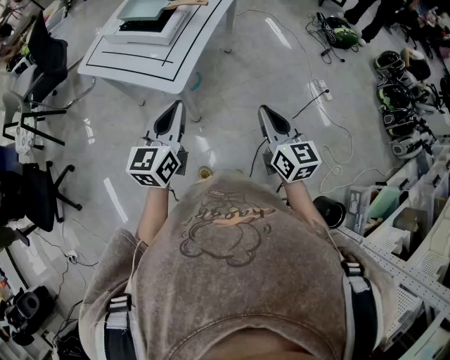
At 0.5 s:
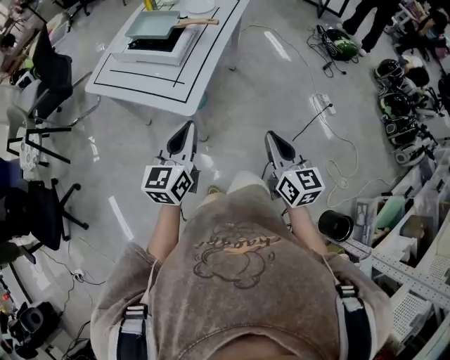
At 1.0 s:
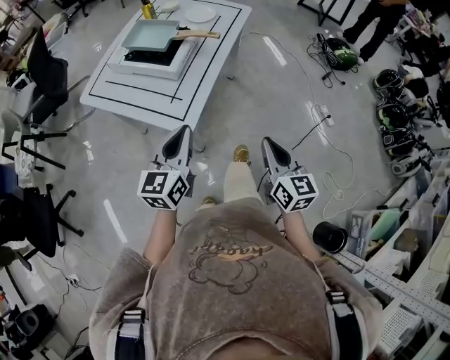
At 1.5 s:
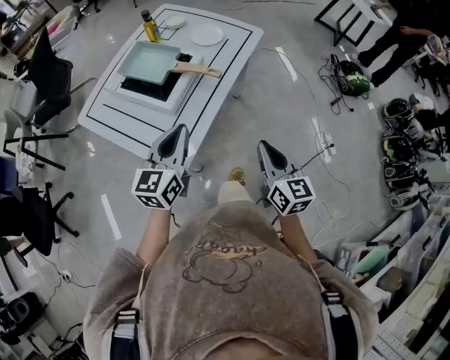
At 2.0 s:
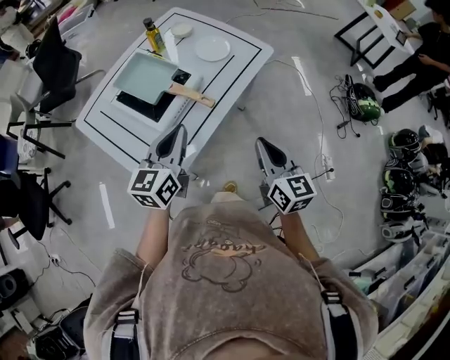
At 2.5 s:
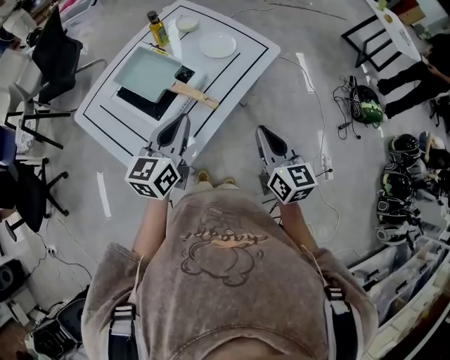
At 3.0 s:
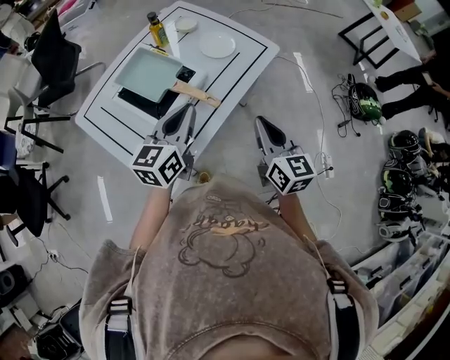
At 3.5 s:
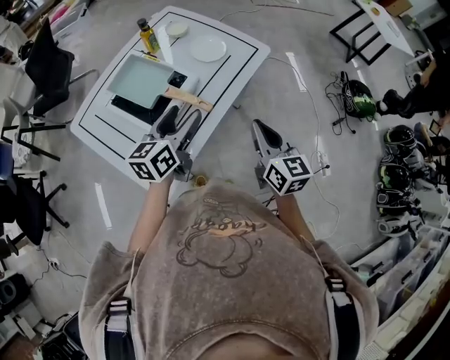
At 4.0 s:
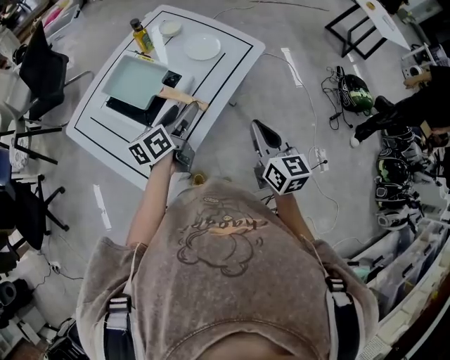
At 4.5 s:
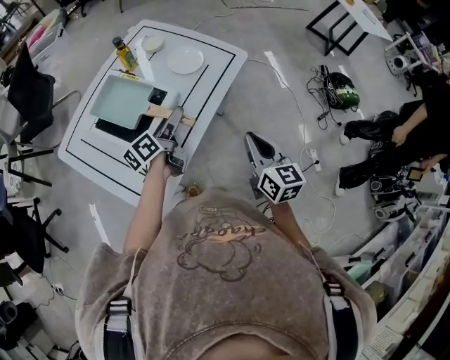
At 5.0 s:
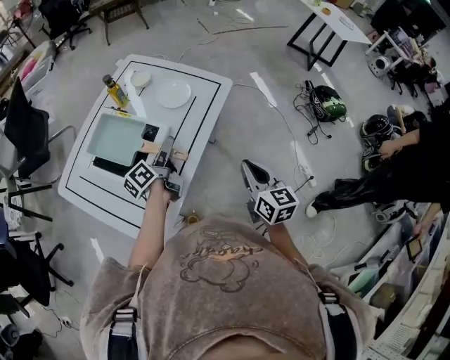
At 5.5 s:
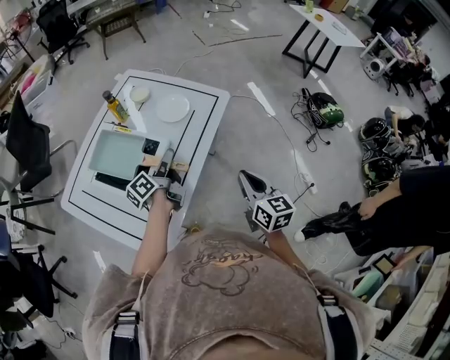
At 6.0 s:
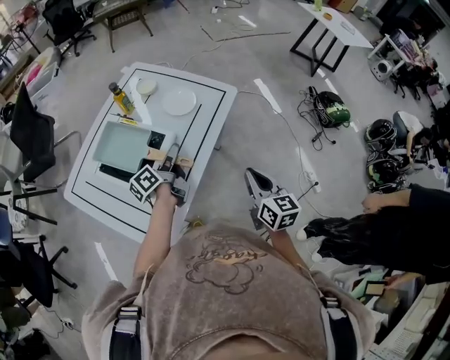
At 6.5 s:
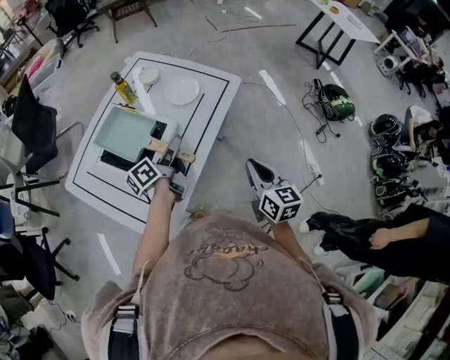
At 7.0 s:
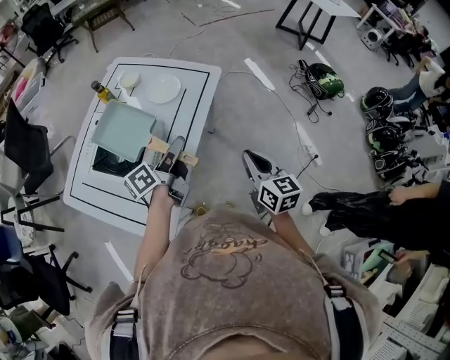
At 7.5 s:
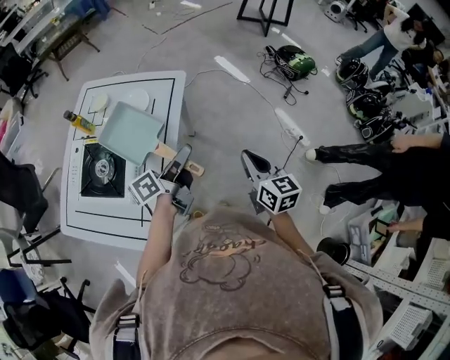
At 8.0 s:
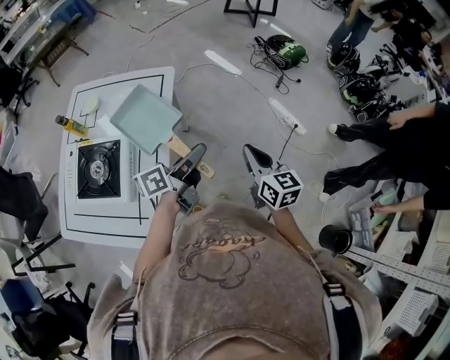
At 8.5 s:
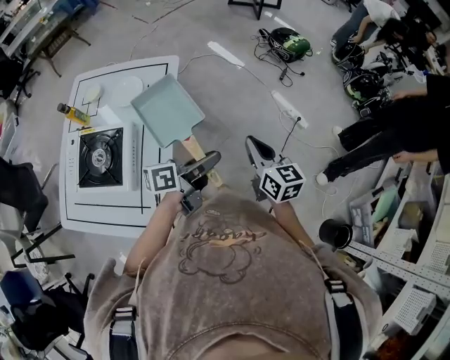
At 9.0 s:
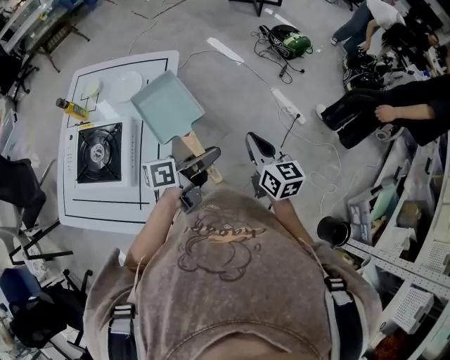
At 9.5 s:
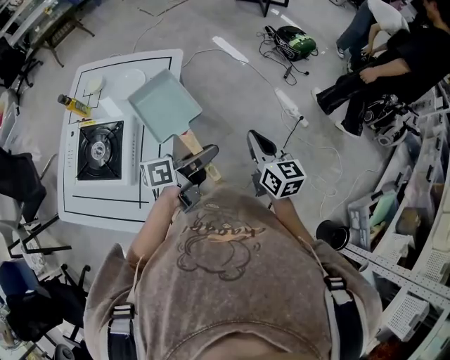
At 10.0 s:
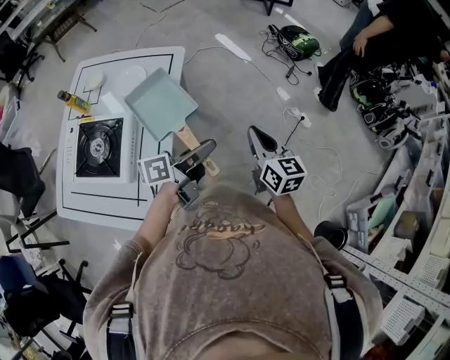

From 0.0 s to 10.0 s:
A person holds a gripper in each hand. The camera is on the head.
From 0.0 s to 2.0 s: The grippers both shift forward by roughly 35 cm.
From 2.0 s to 4.0 s: The left gripper moves forward and downward, approximately 10 cm, turns by about 30 degrees, and opens its fingers; the right gripper heads forward, covering about 5 cm.
From 4.0 s to 6.0 s: The left gripper goes approximately 5 cm forward, changes its angle by roughly 20 degrees, and closes its fingers.
From 6.0 s to 8.0 s: The left gripper changes place by roughly 25 cm, and changes its angle by roughly 50 degrees, while the right gripper changes place by about 10 cm.
From 8.0 s to 10.0 s: The grippers move only a little.

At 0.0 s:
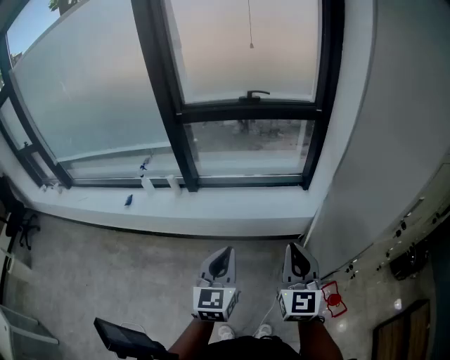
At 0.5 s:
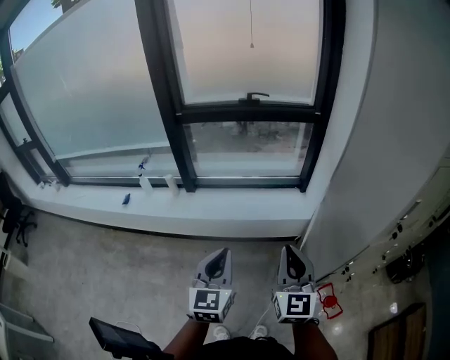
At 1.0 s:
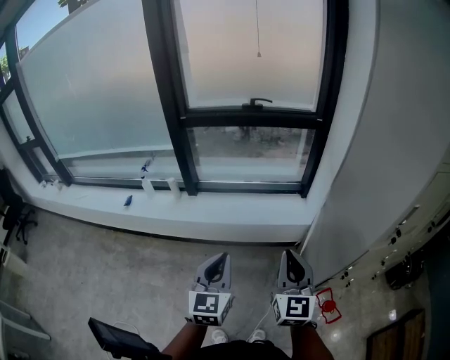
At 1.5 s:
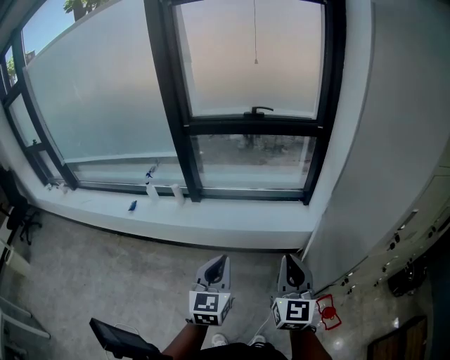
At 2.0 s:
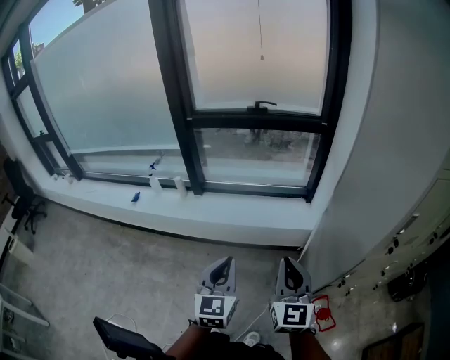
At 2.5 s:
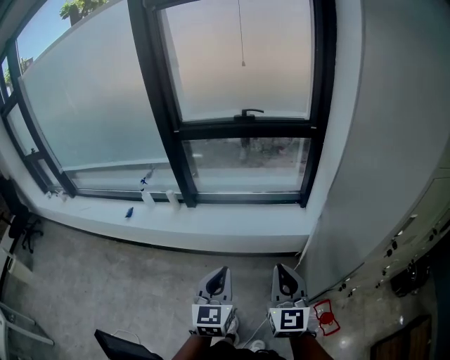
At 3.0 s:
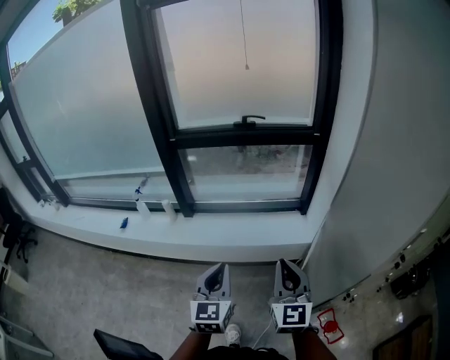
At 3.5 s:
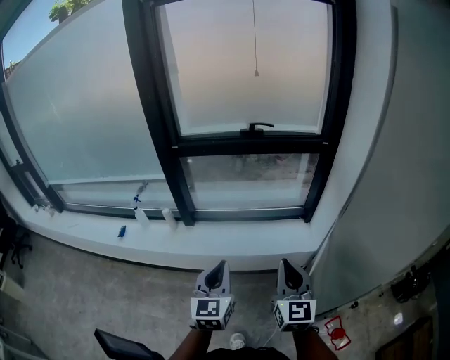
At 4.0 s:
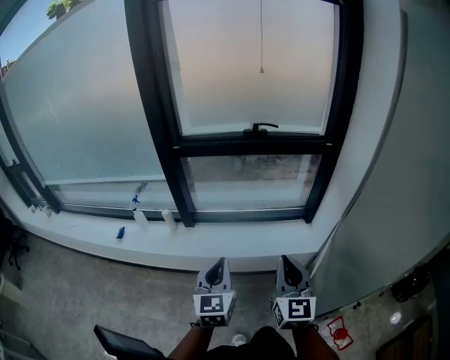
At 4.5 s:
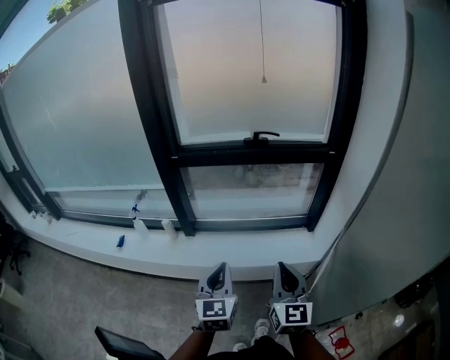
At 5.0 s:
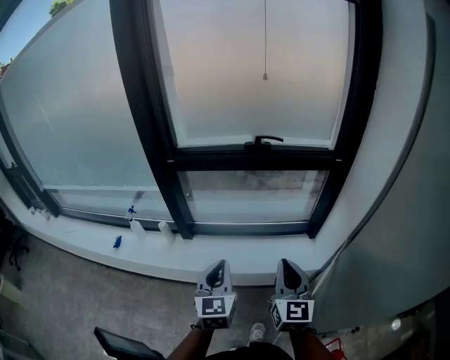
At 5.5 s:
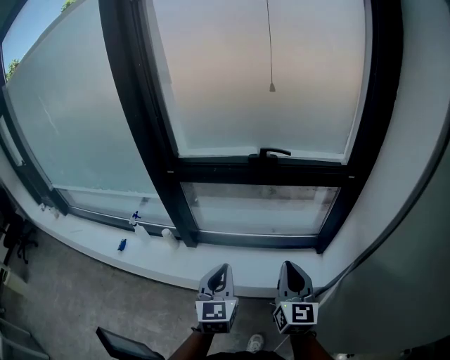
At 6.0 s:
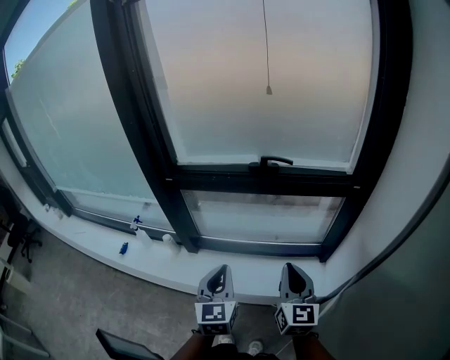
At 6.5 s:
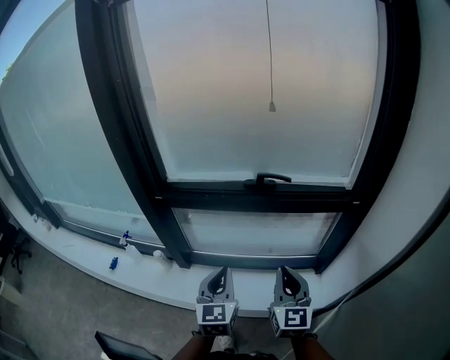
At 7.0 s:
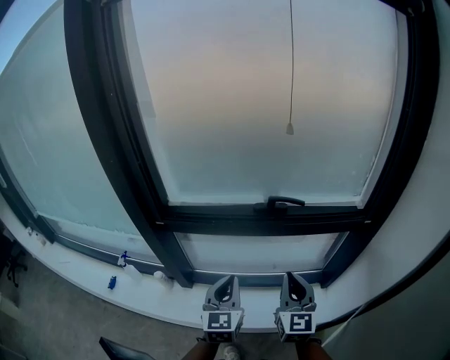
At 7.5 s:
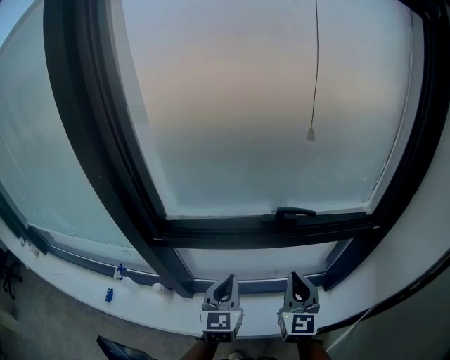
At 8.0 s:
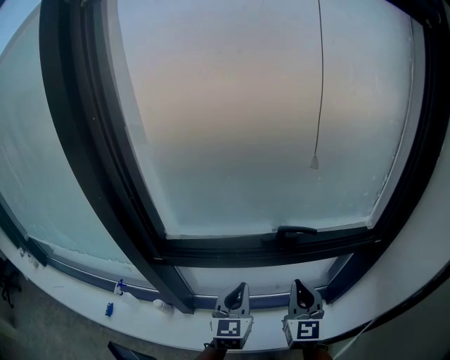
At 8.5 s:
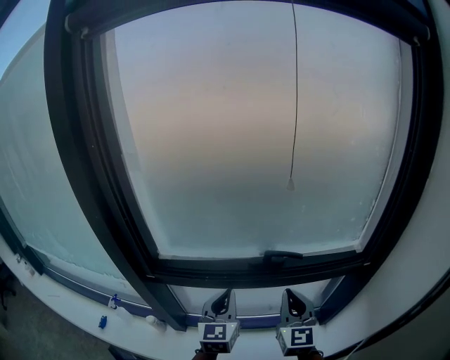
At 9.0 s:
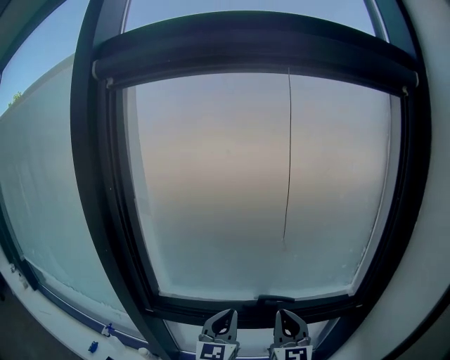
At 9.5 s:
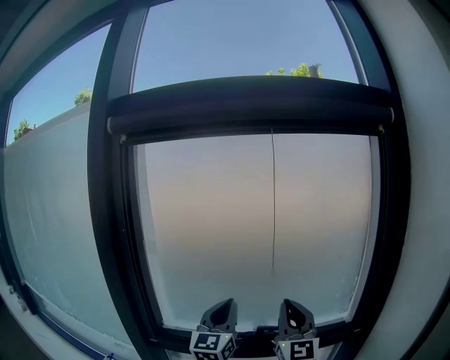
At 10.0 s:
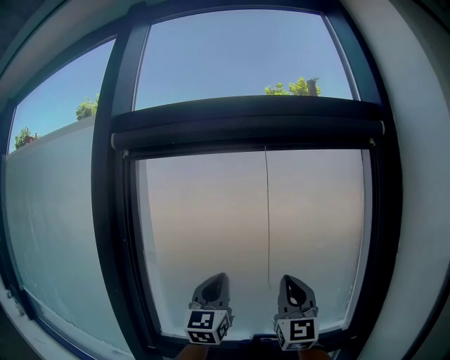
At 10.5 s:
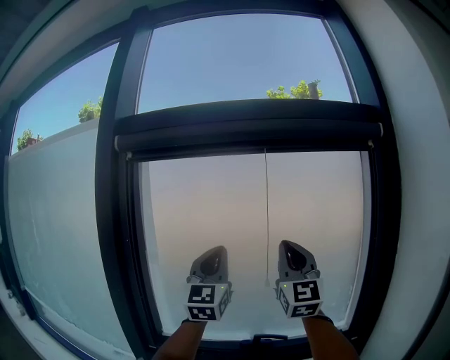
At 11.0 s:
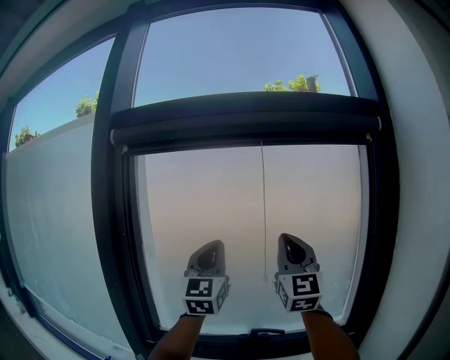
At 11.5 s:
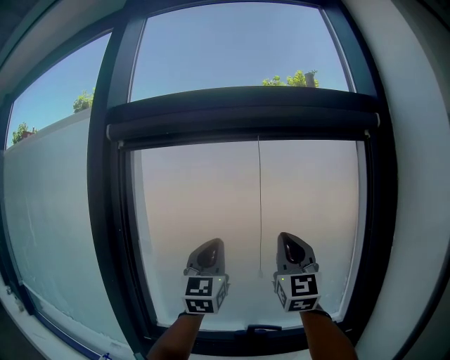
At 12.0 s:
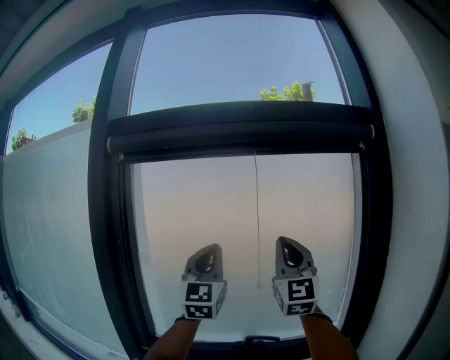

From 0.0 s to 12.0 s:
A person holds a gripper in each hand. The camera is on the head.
From 0.0 s to 2.0 s: The left gripper moves roughly 5 cm.
From 2.0 s to 4.0 s: The two grippers go roughly 25 cm forward and to the left.
From 4.0 s to 6.0 s: The two grippers go about 25 cm forward.
From 6.0 s to 8.0 s: The grippers both shift forward by some 25 cm.
From 8.0 s to 10.0 s: Both grippers travel together upward, roughly 35 cm. The left gripper tilts its fingers approximately 40 degrees upward, while the right gripper points its fingers about 40 degrees further upward.
From 10.0 s to 12.0 s: The grippers both shift upward by roughly 10 cm.

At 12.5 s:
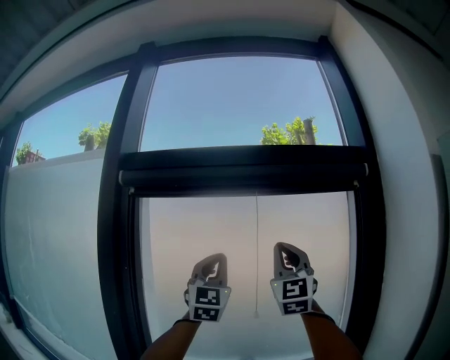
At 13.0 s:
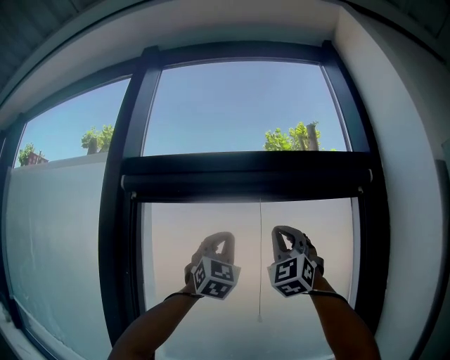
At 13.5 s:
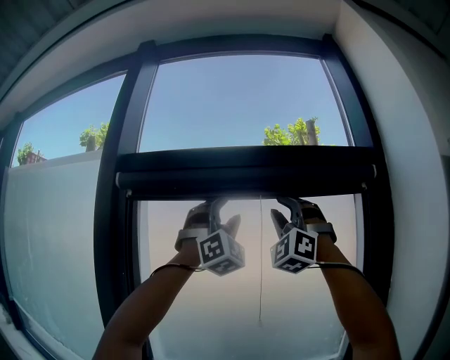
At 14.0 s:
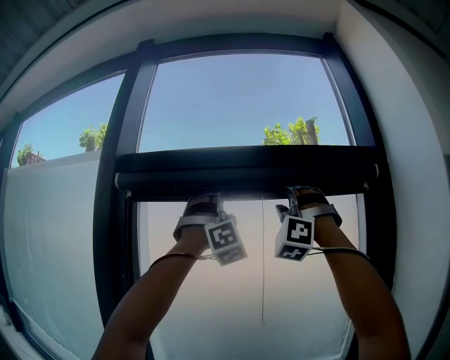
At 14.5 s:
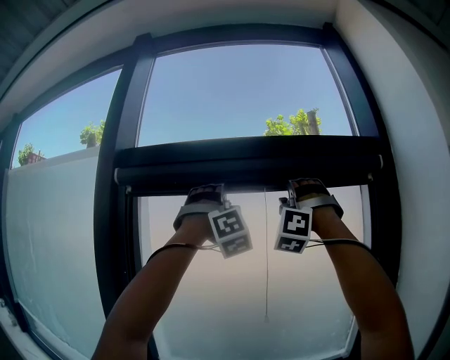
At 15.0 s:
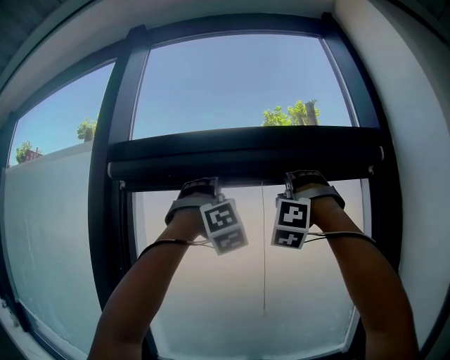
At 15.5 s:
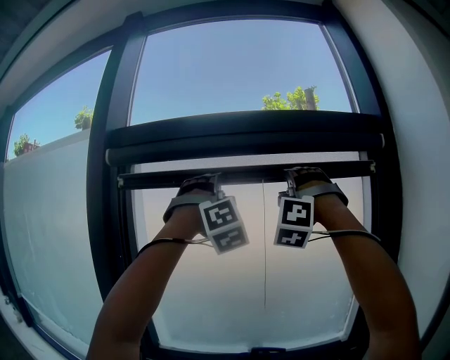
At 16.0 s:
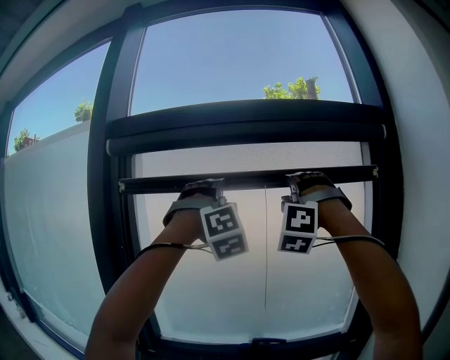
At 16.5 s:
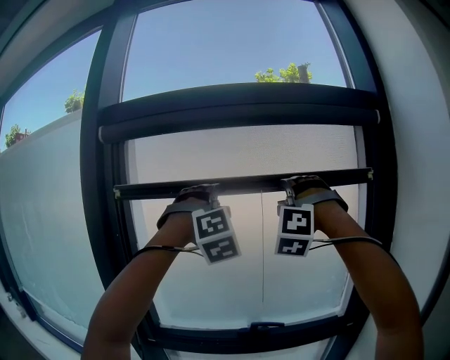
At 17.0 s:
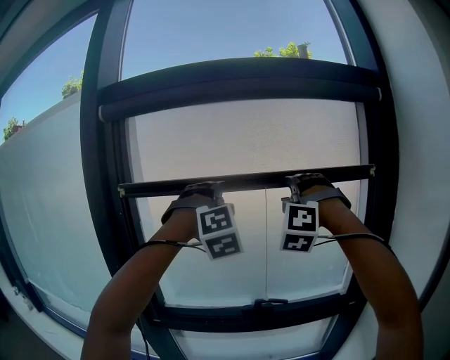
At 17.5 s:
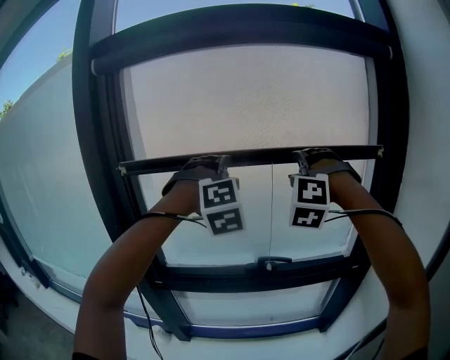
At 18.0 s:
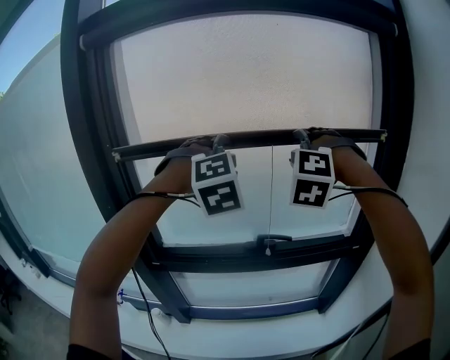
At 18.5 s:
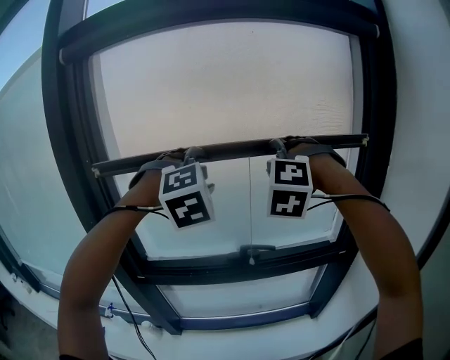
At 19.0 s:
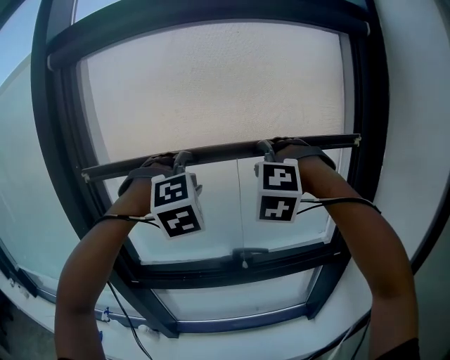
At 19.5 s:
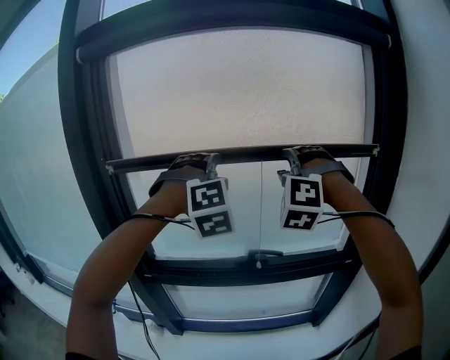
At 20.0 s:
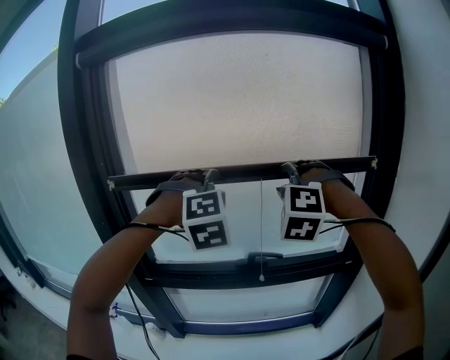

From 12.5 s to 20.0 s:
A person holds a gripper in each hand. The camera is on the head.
From 12.5 s to 14.5 s: The right gripper travels upward and forward by roughly 15 cm, twists about 70 degrees counterclockwise, seen from behind, and opens its fingers; the left gripper moves upward, approximately 15 cm, twists approximately 60 degrees clockwise, seen from behind, and opens.
From 14.5 s to 16.5 s: The grippers both shift downward by about 15 cm. The right gripper changes its angle by about 20 degrees. The left gripper changes its angle by roughly 20 degrees.
From 16.5 s to 18.0 s: The grippers both shift downward by roughly 15 cm. The right gripper rotates approximately 20 degrees. The left gripper changes its angle by roughly 20 degrees.
From 18.0 s to 20.0 s: There are only small adjustments of the grippers.
